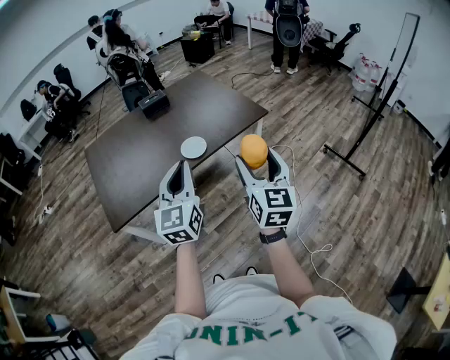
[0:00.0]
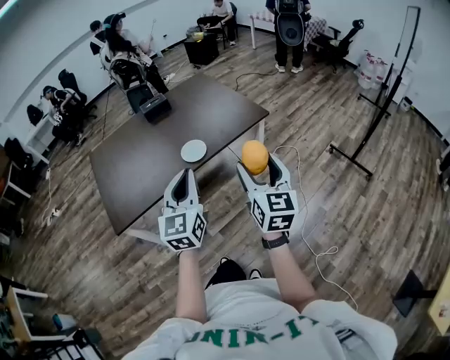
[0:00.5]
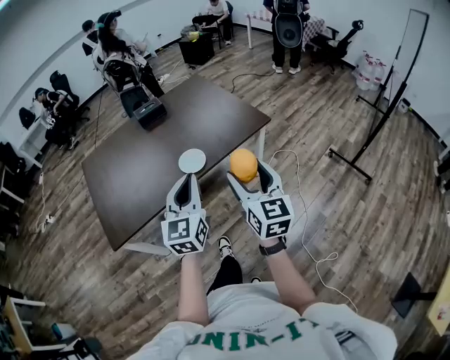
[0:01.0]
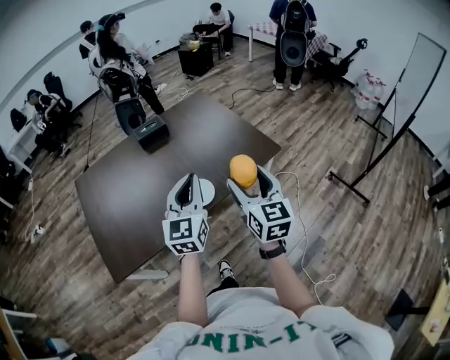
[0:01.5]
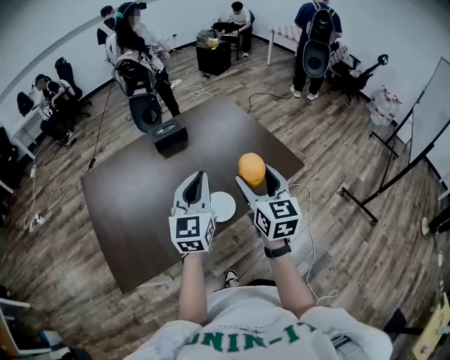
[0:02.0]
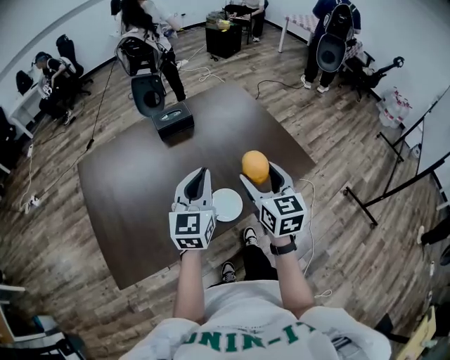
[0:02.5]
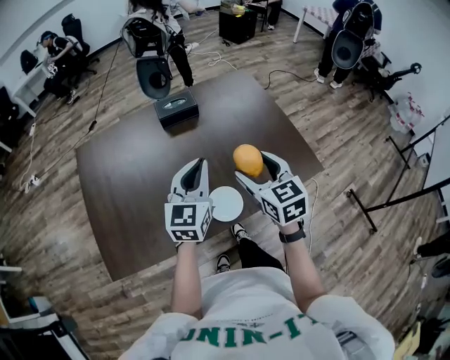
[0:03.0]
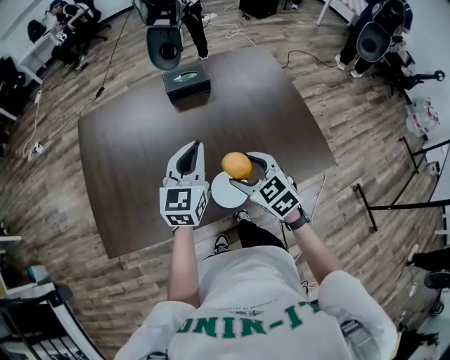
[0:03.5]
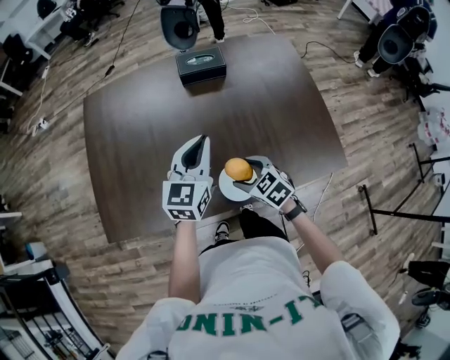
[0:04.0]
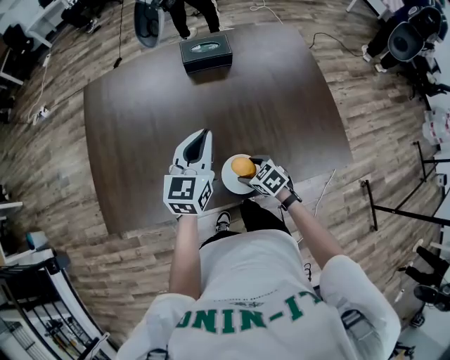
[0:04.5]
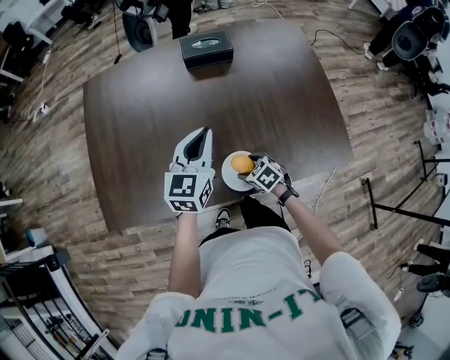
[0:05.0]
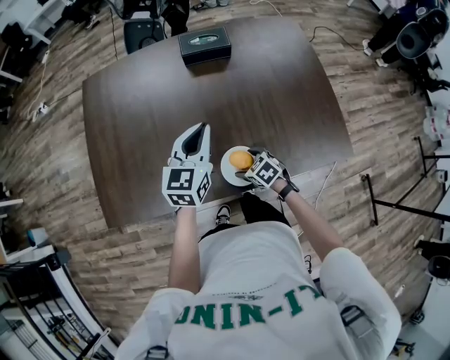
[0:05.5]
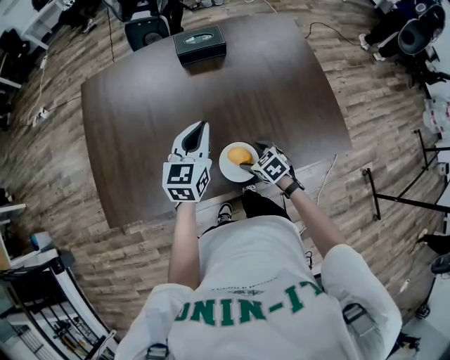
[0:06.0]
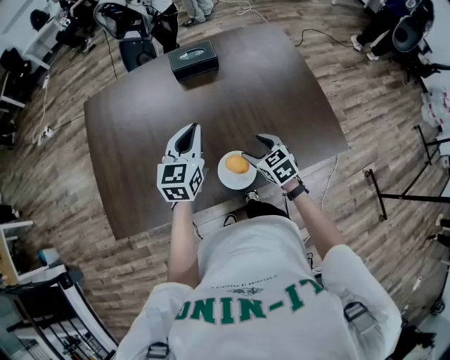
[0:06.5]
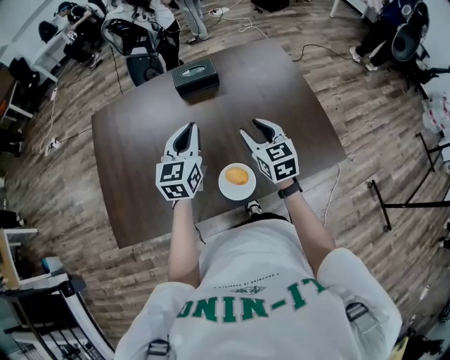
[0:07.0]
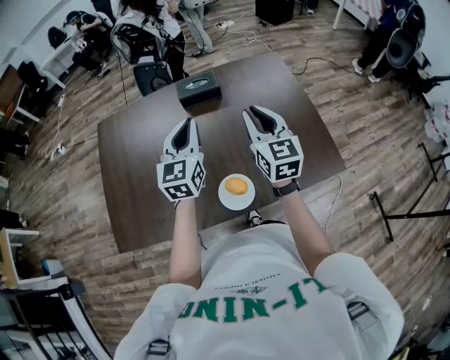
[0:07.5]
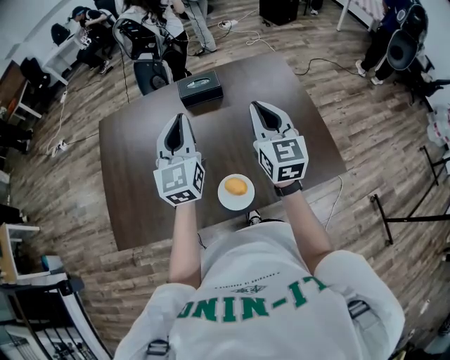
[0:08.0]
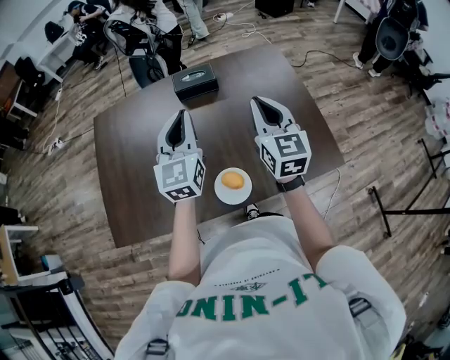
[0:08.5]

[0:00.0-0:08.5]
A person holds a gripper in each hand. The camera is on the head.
0:00.0 to 0:02.0: The left gripper moves forward, approximately 35 cm, while the right gripper heads forward and to the left, covering some 40 cm.
0:02.0 to 0:04.0: The left gripper changes place by roughly 25 cm, while the right gripper is displaced downward by some 30 cm, and points its fingers approximately 40 degrees further downward.
0:04.0 to 0:06.5: The right gripper heads to the right, covering approximately 5 cm, and reaches approximately 15 cm downward, then returns.
0:06.5 to 0:08.5: The right gripper travels upward by some 25 cm, tilts its fingers roughly 40 degrees upward, and closes up. The left gripper heads upward, covering approximately 15 cm, and rotates about 20 degrees.

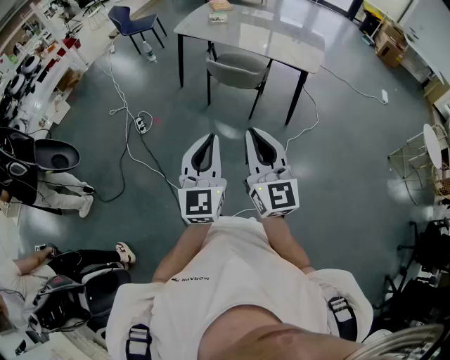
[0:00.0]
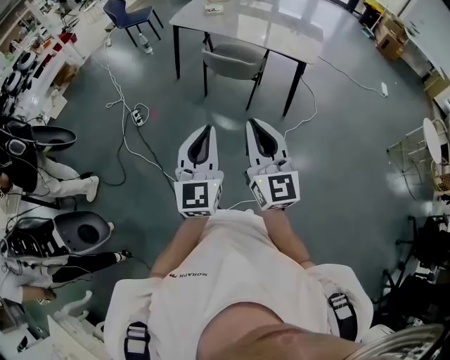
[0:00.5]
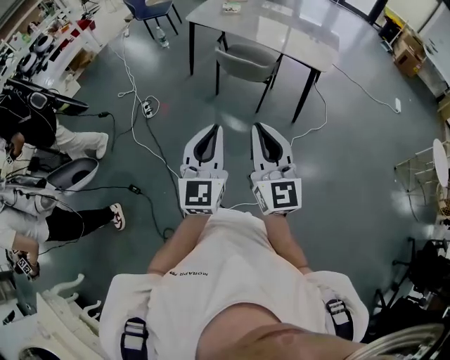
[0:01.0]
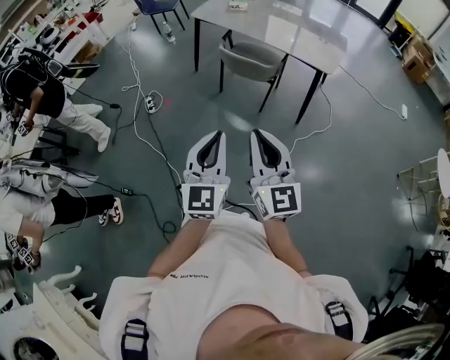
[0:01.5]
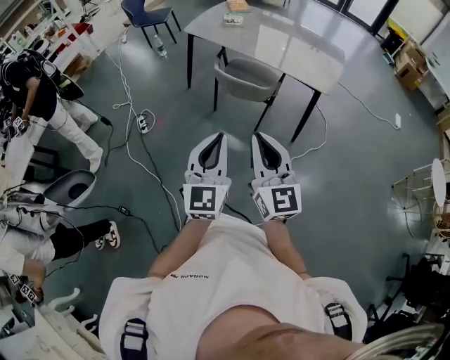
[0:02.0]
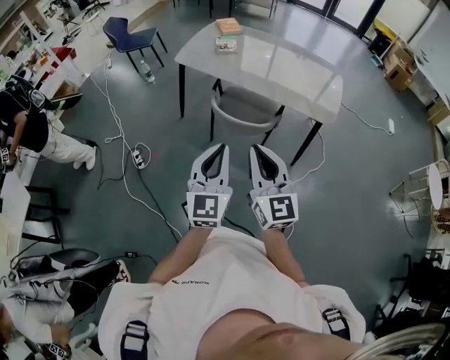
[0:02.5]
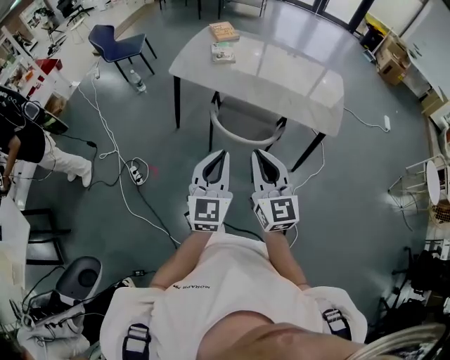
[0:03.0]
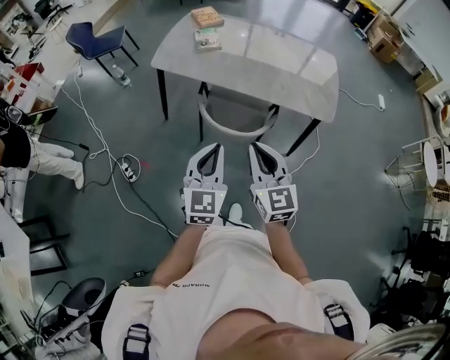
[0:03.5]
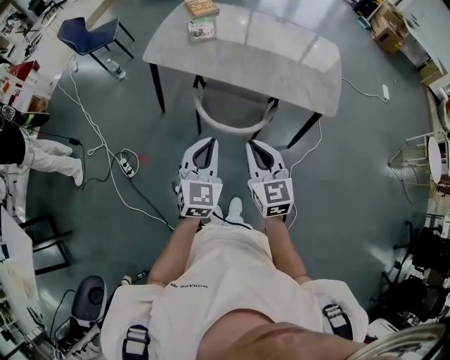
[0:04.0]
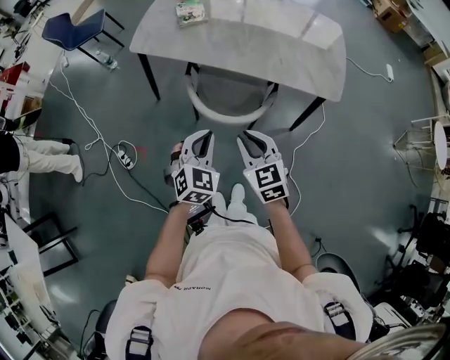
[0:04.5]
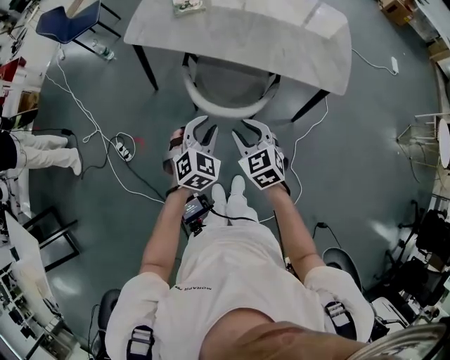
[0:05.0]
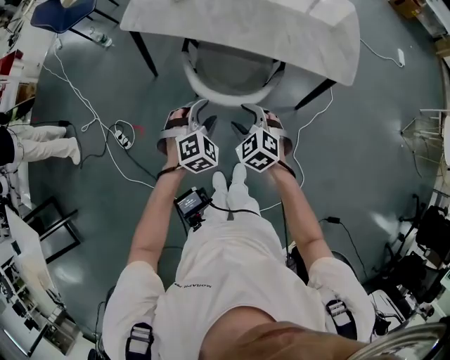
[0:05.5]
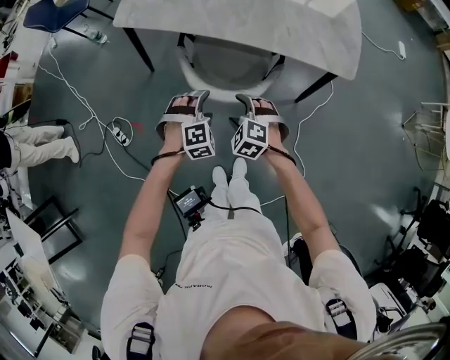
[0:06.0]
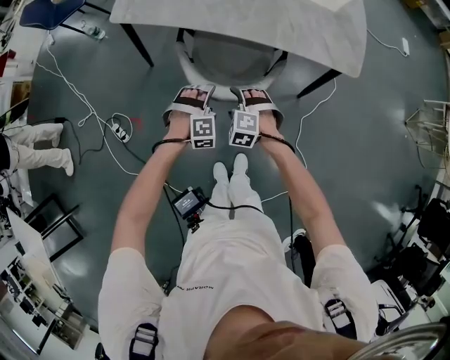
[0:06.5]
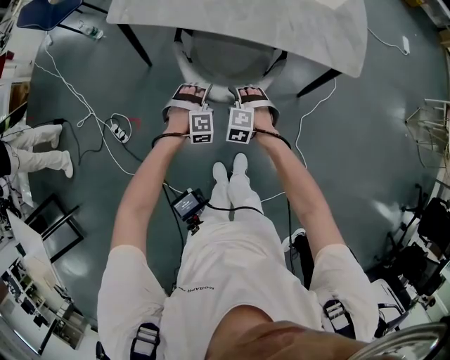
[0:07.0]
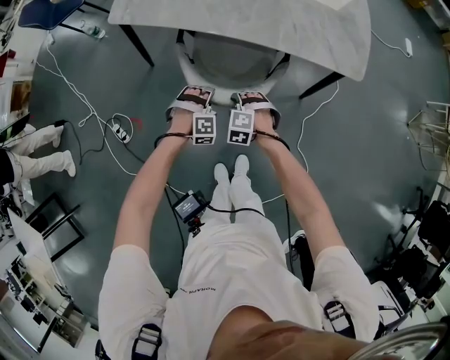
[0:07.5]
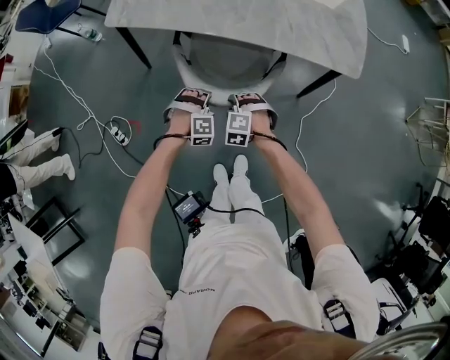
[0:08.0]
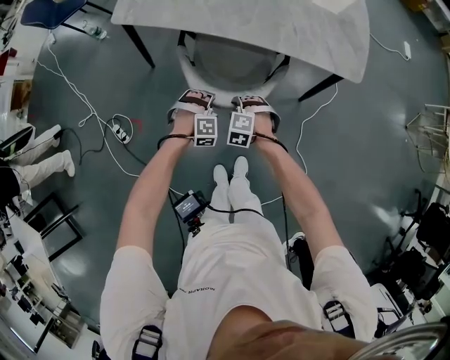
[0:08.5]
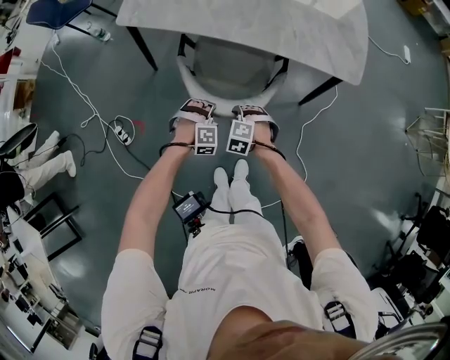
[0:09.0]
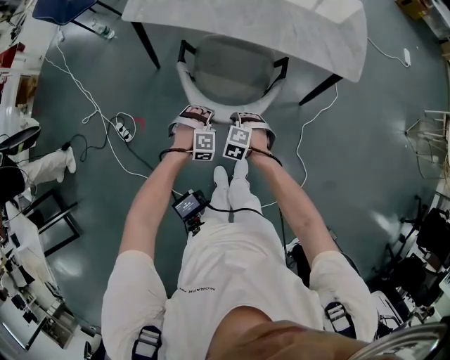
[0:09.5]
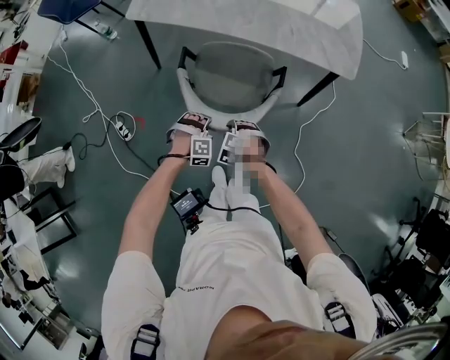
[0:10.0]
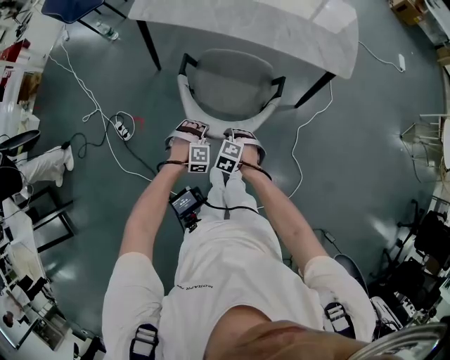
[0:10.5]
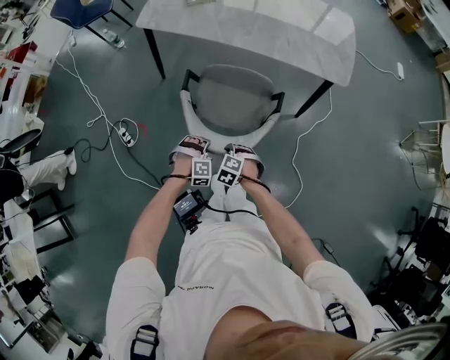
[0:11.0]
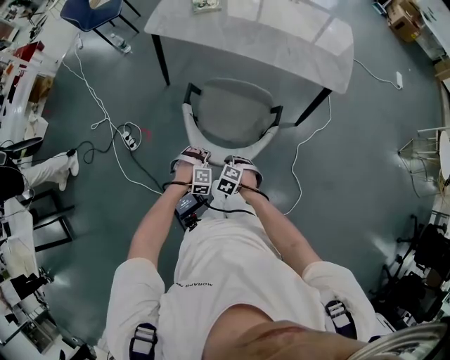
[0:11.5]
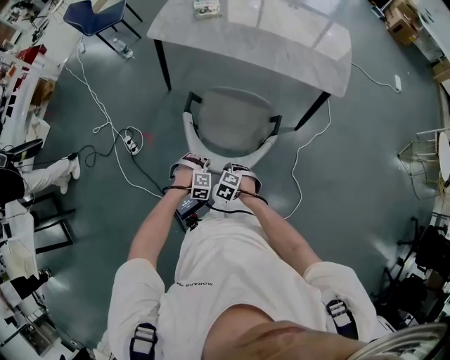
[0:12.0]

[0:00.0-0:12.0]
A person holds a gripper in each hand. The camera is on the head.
0:00.0 to 0:02.0: The two grippers go roughly 15 cm forward and to the right.
0:02.0 to 0:04.0: Both grippers are carried forward, approximately 40 cm. The left gripper turns by approximately 30 degrees. Meanwhile the right gripper turns by about 30 degrees.
0:04.0 to 0:06.0: The two grippers go approximately 30 cm downward. The right gripper points its fingers some 40 degrees further downward, and opens; the left gripper tips its fingers downward by roughly 40 degrees, and opens its fingers.
0:06.0 to 0:08.0: The grippers both shift downward by roughly 10 cm. The left gripper turns by approximately 20 degrees, and closes up. The right gripper closes.
0:08.0 to 0:10.0: The grippers both shift backward by some 15 cm.
0:10.0 to 0:12.0: The left gripper moves about 15 cm. The right gripper changes place by about 15 cm.

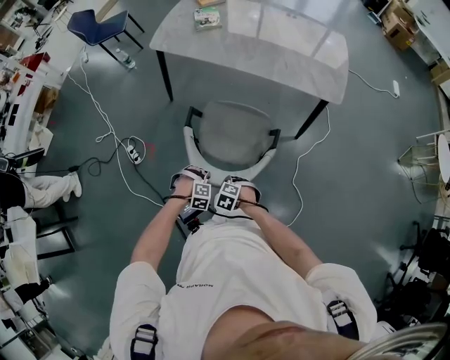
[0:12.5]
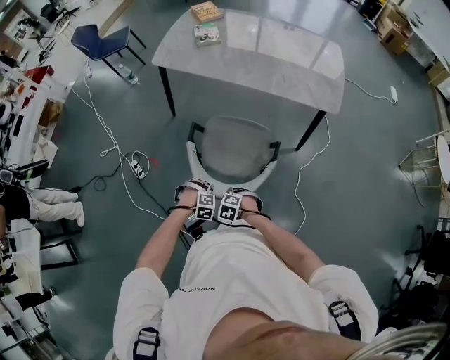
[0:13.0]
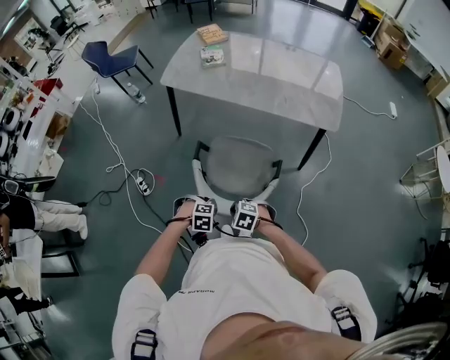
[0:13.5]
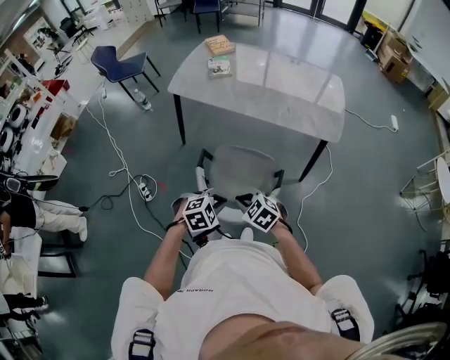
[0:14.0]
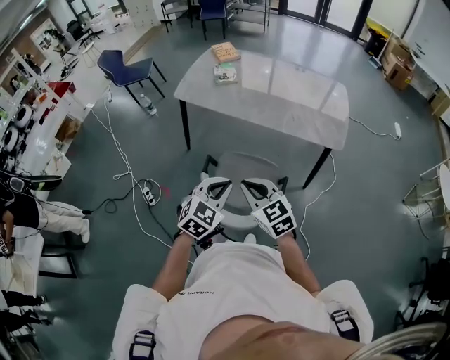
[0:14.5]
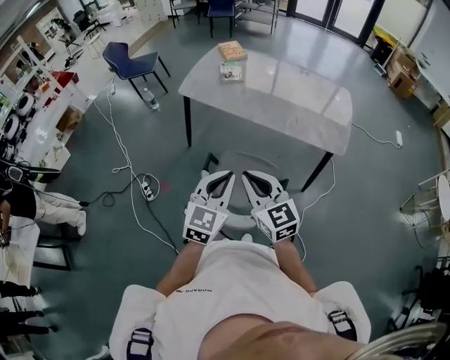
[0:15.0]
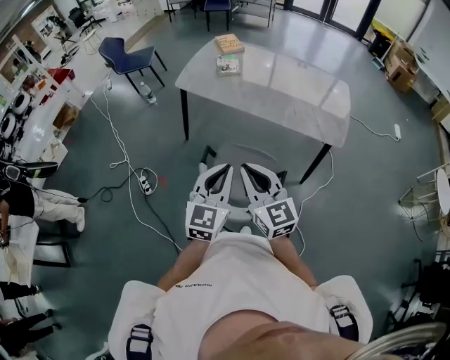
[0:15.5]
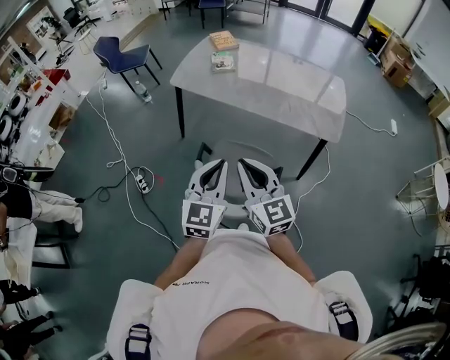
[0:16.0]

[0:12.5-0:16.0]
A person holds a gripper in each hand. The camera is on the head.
0:12.5 to 0:14.5: Both grippers move upward, approximately 35 cm. The right gripper angles its fingers upward, by approximately 50 degrees, while the left gripper points its fingers some 50 degrees further upward.
0:14.5 to 0:16.0: Both grippers move upward, roughly 10 cm. The right gripper rotates approximately 20 degrees; the left gripper turns by roughly 30 degrees.

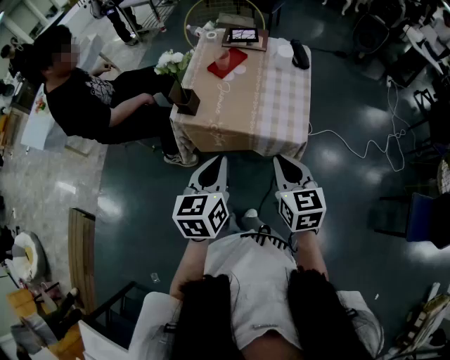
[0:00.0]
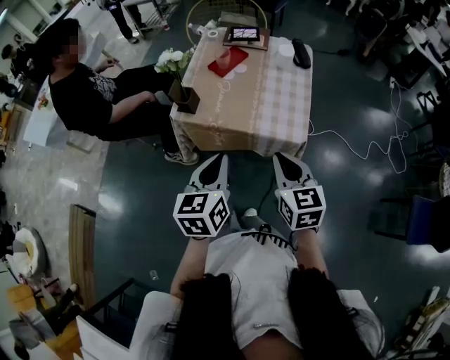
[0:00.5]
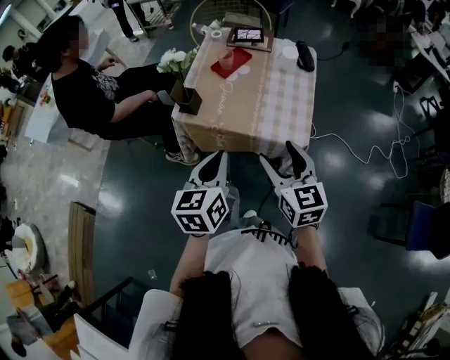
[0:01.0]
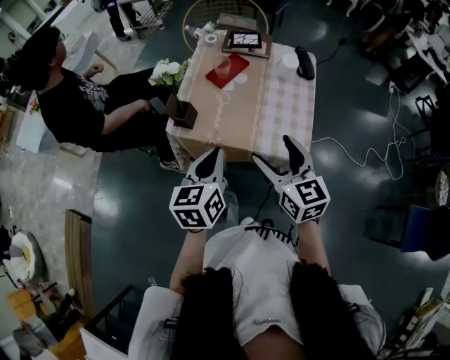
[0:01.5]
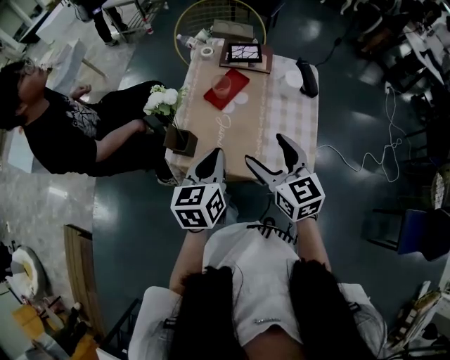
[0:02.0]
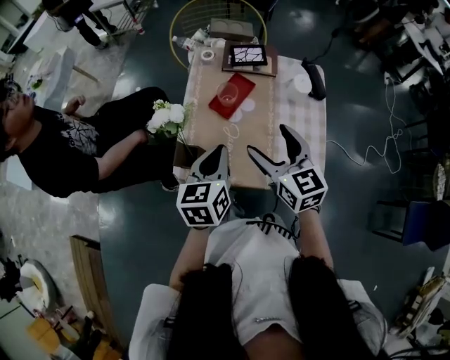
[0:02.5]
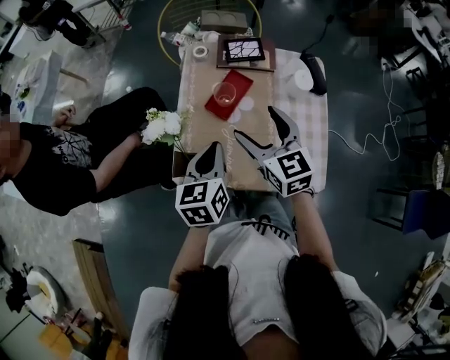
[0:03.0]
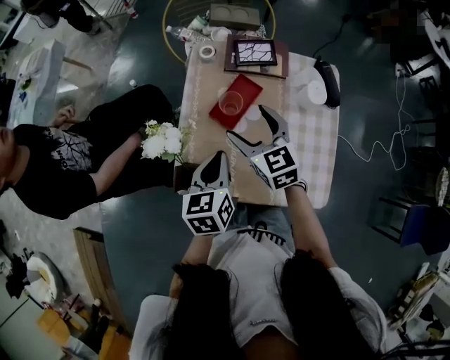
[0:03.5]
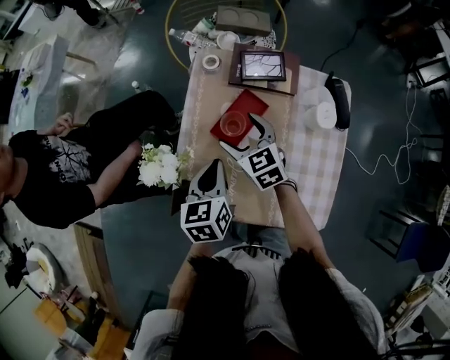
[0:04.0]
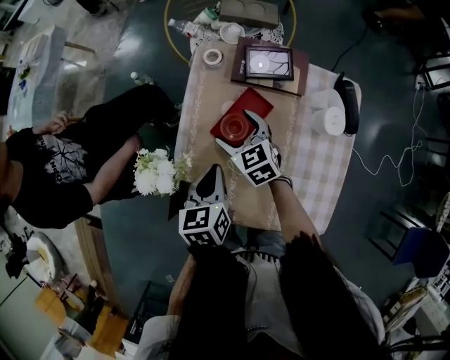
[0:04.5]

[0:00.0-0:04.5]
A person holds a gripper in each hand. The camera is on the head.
0:00.0 to 0:02.0: The two grippers go approximately 25 cm forward. The right gripper opens.
0:02.0 to 0:04.5: The right gripper moves forward and downward, some 35 cm, and rotates approximately 20 degrees; the left gripper moves forward and downward, about 25 cm.
